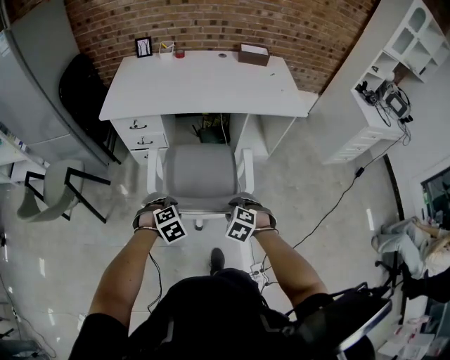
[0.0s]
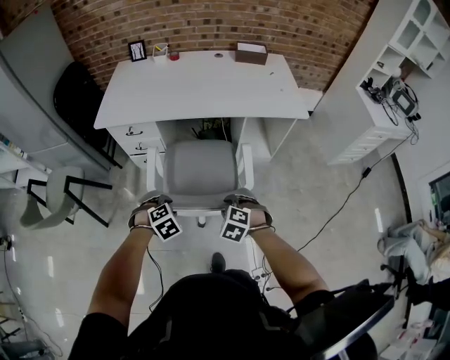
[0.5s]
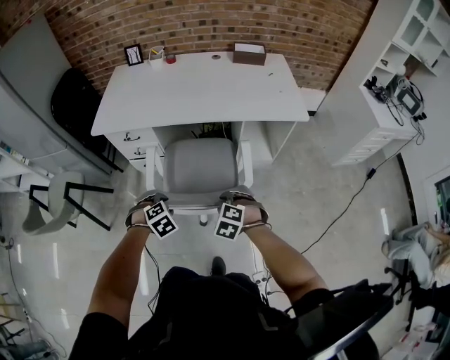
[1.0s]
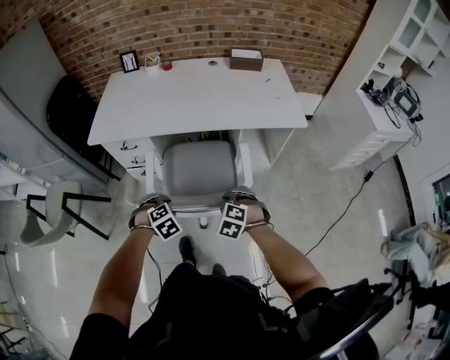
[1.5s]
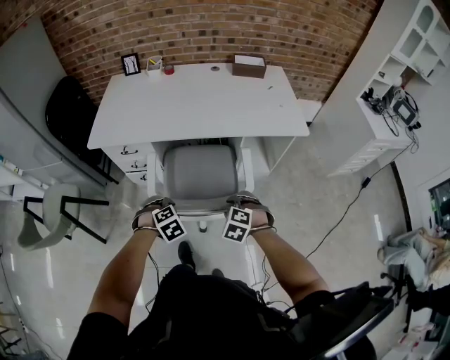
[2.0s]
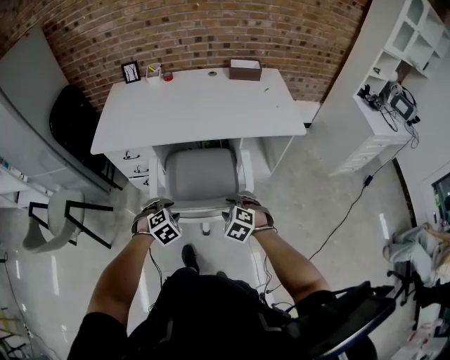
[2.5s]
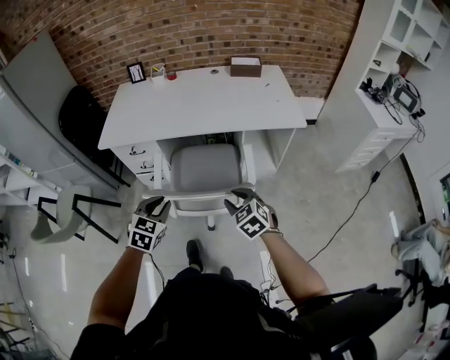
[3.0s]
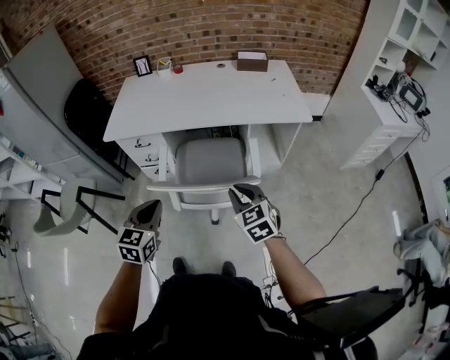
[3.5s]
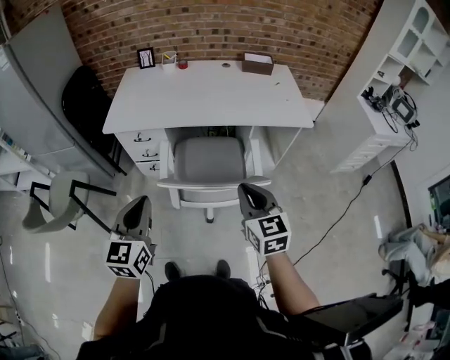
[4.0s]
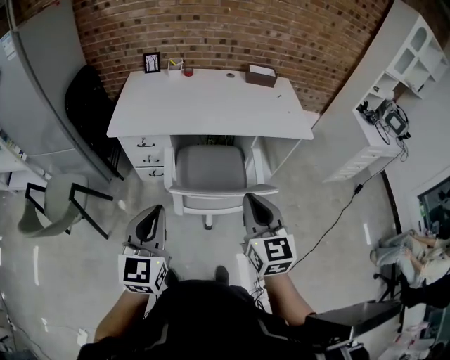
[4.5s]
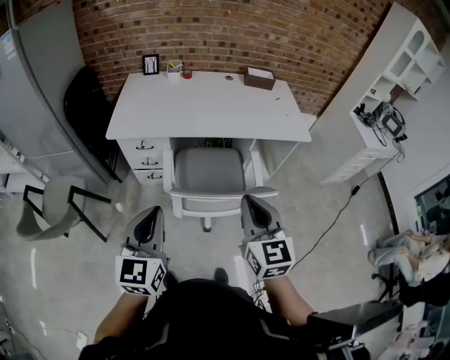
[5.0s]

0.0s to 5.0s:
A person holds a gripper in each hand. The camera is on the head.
0.0s to 2.5s: Both grippers move forward, about 15 cm.
2.5s to 5.0s: The right gripper is displaced upward by approximately 30 cm, angles its fingers upward, by roughly 50 degrees, and closes its fingers, while the left gripper heads upward and to the left, covering roughly 30 cm, tilts its fingers roughly 60 degrees upward, and closes its fingers.

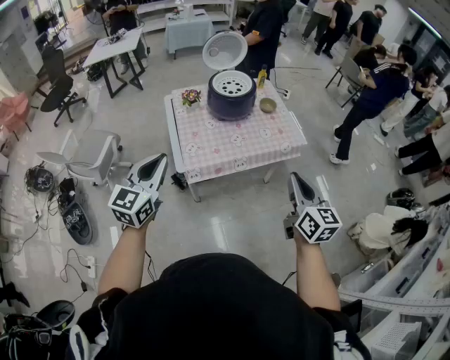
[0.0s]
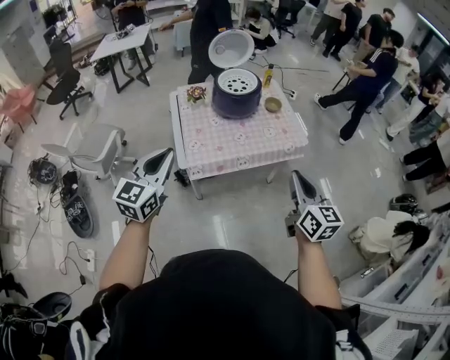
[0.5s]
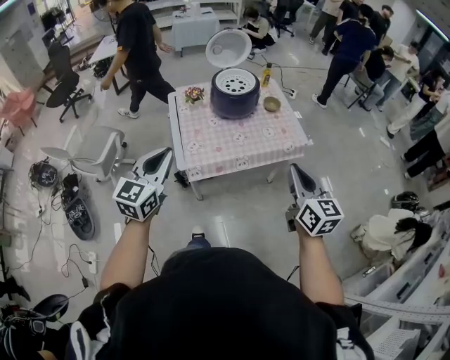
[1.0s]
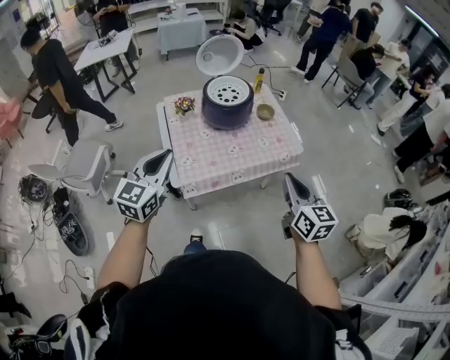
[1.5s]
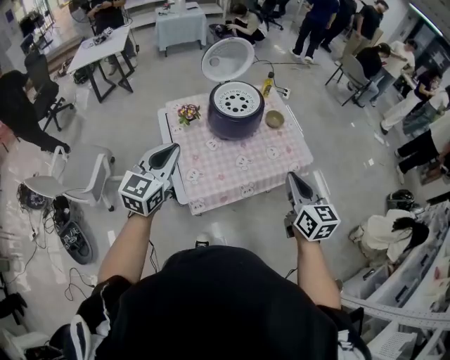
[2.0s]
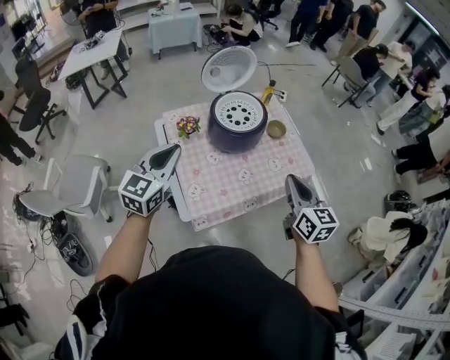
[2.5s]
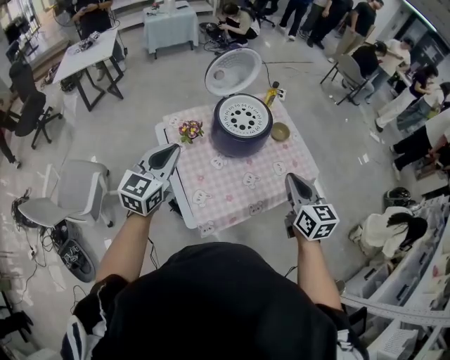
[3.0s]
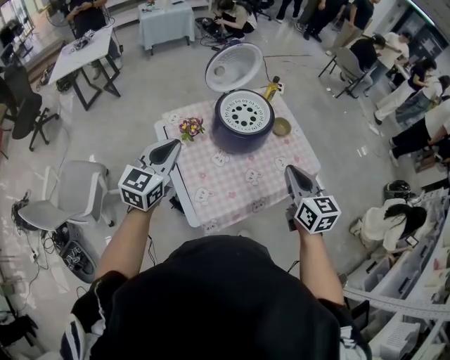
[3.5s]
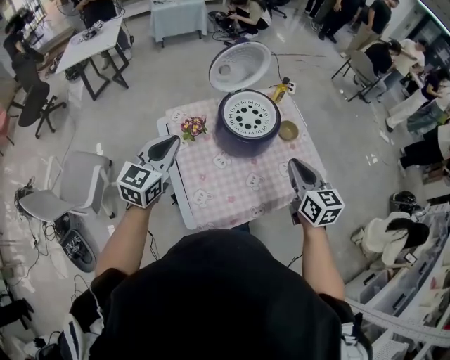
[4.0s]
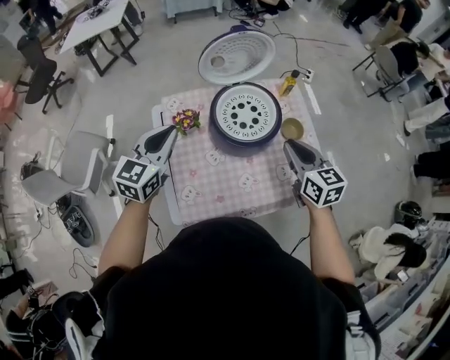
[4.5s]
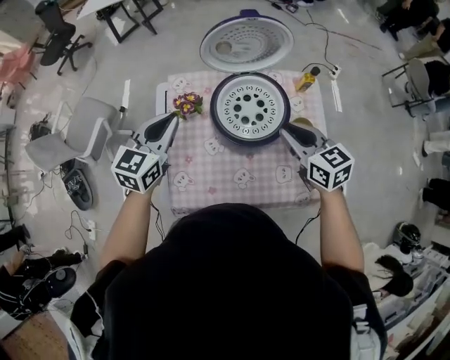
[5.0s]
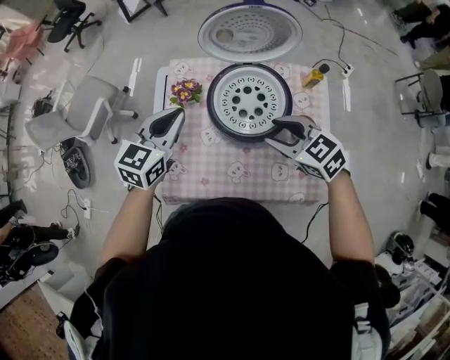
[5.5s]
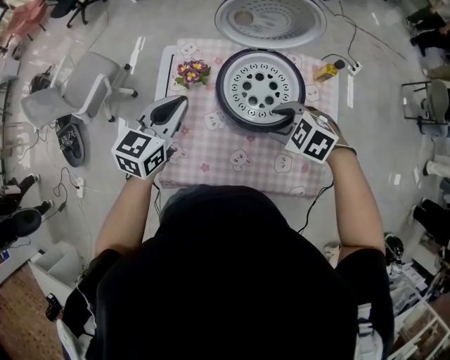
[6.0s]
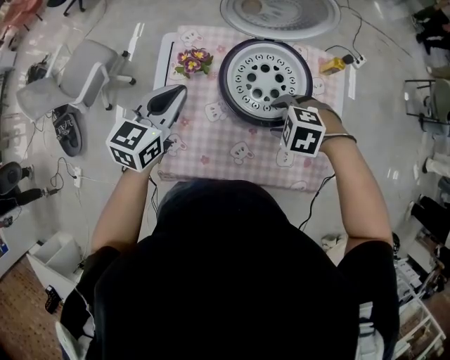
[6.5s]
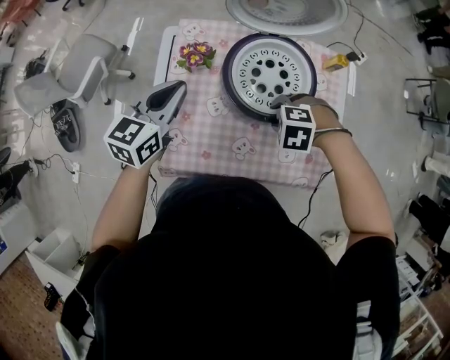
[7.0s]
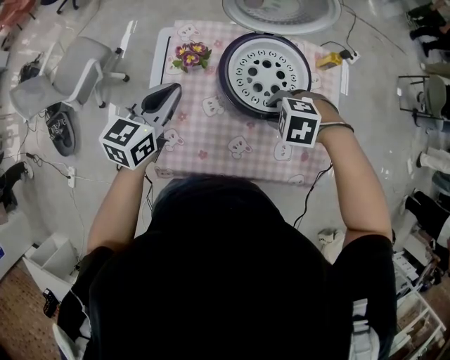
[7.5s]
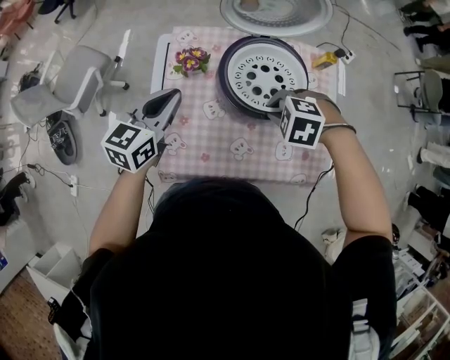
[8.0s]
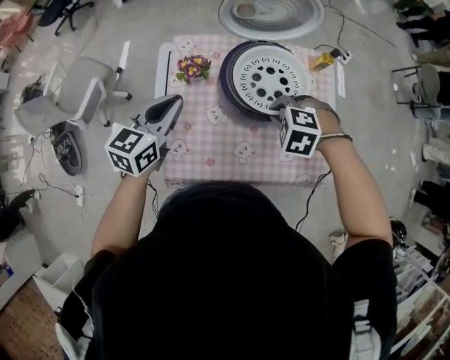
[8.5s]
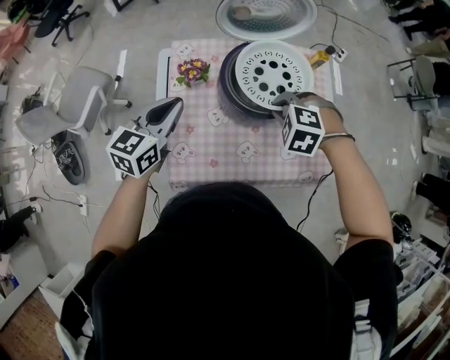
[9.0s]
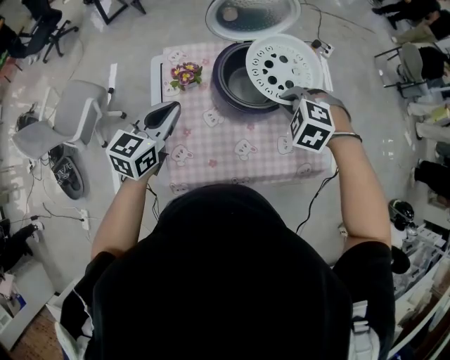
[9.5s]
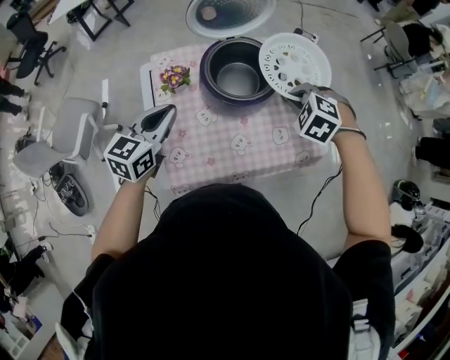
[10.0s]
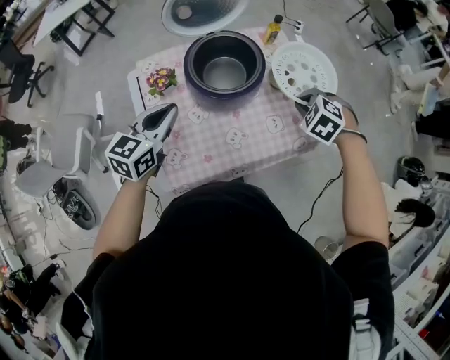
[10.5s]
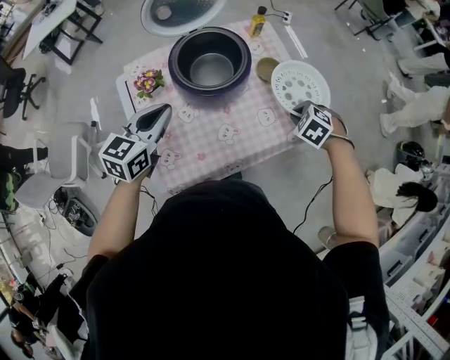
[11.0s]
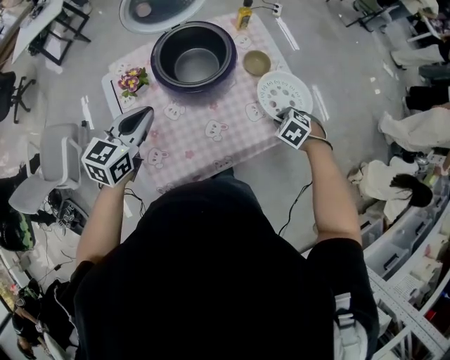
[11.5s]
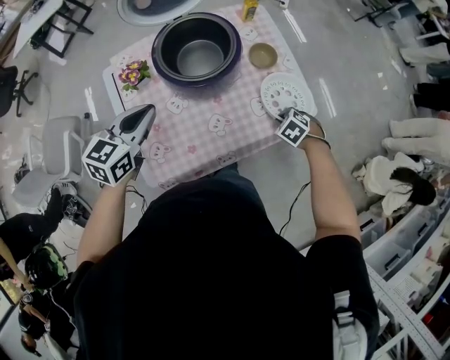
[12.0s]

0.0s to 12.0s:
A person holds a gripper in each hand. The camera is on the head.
0.0s to 2.0s: Both grippers move forward, approximately 20 cm.
2.0s to 4.0s: The left gripper goes about 20 cm forward and to the left; the right gripper moves forward, approximately 20 cm.
4.0s to 6.0s: The right gripper moves roughly 25 cm, tilts its fingers roughly 40 degrees downward, and opens. The left gripper changes place by roughly 15 cm, and swivels about 30 degrees.
6.0s to 8.0s: The right gripper closes up.
8.0s to 10.0s: The right gripper moves approximately 10 cm, and swivels about 30 degrees, while the left gripper changes place by approximately 5 cm.
10.0s to 12.0s: The right gripper goes about 25 cm downward, and swivels approximately 30 degrees, while the left gripper moves about 5 cm.

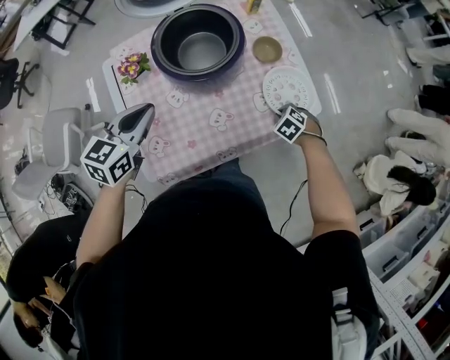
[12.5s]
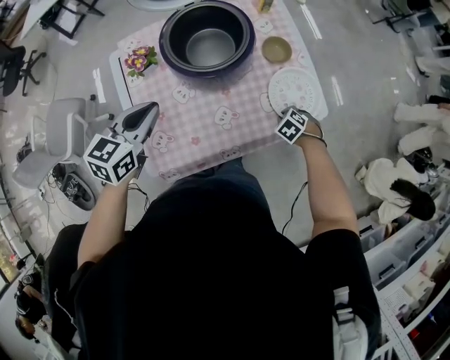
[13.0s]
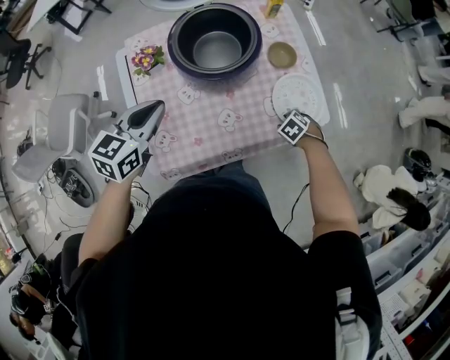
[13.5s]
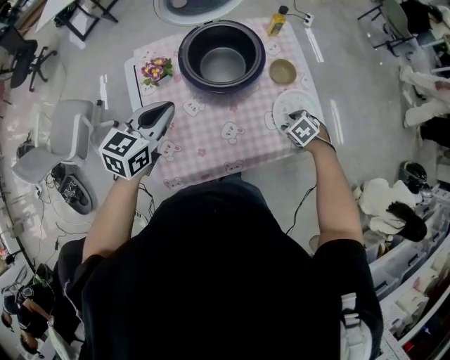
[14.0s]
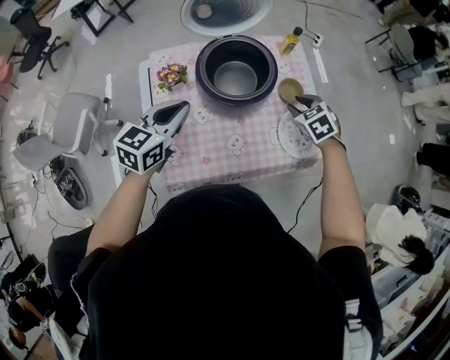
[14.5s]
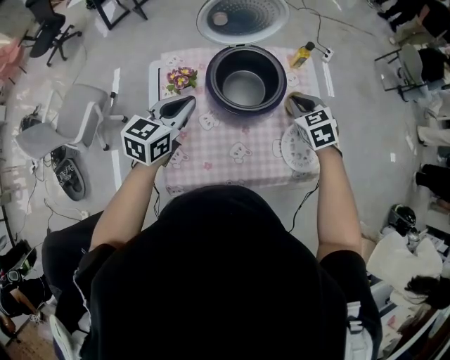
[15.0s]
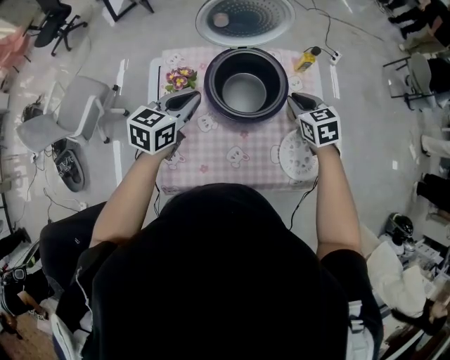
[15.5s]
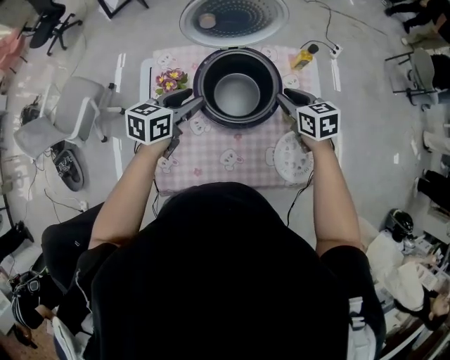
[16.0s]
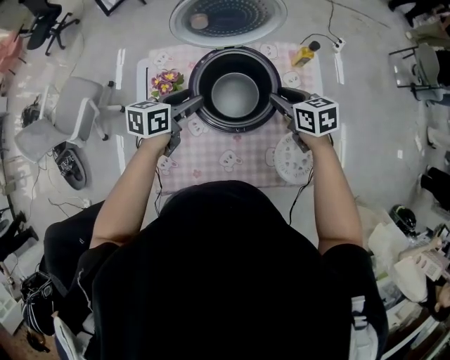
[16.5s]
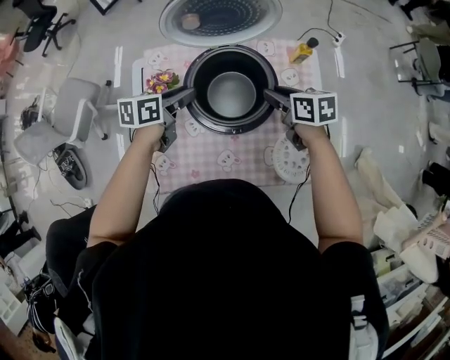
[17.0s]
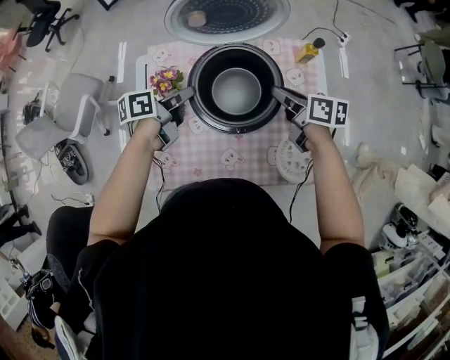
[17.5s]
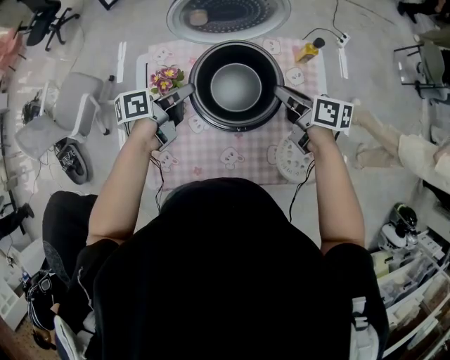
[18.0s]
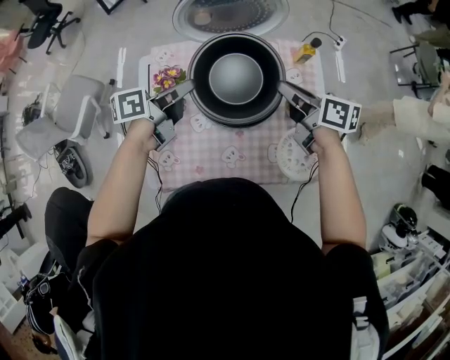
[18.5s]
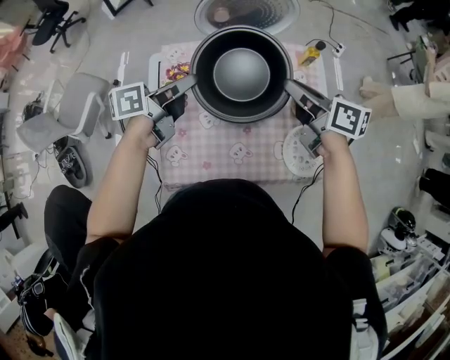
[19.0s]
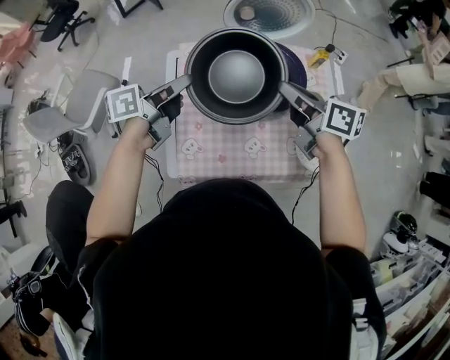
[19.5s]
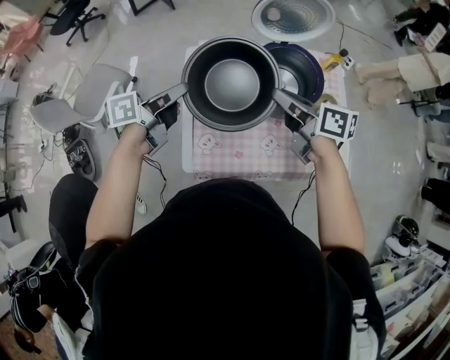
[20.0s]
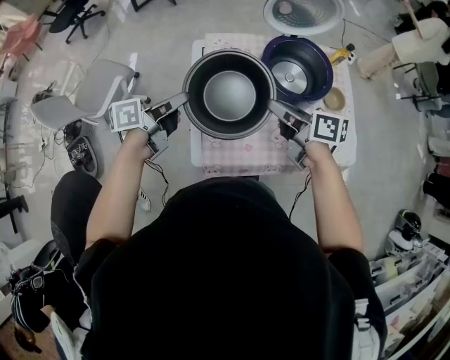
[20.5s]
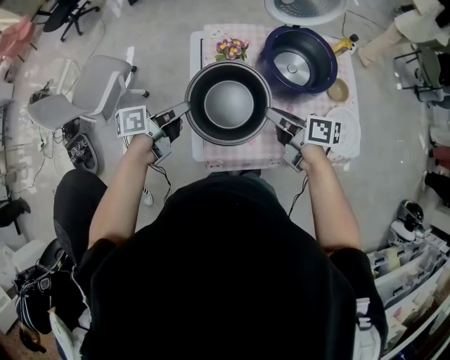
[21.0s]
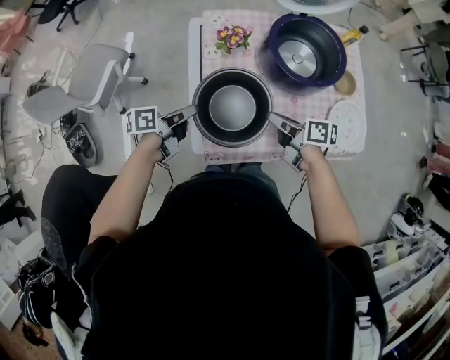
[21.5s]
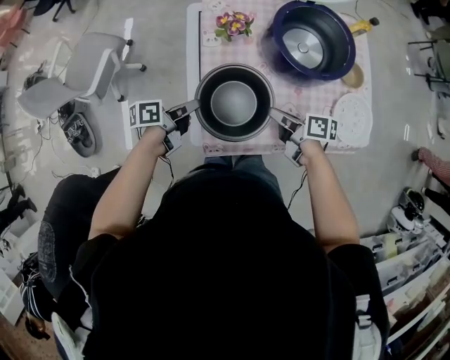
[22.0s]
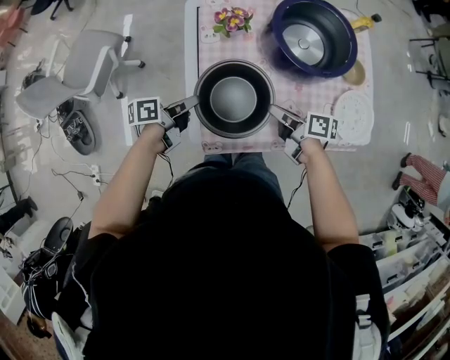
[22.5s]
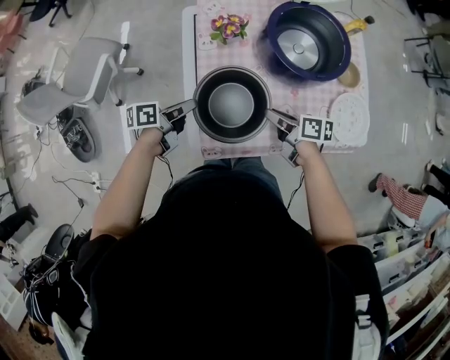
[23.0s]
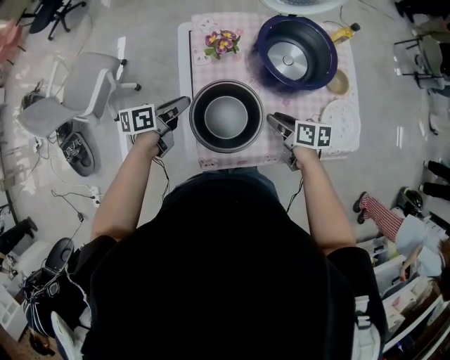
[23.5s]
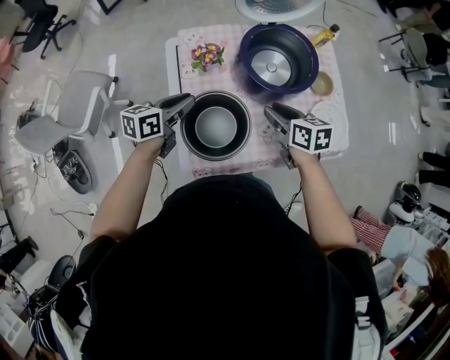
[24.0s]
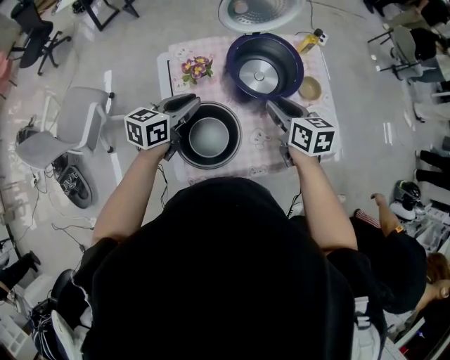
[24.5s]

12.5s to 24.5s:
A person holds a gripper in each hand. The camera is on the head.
12.5s to 14.5s: The left gripper moves about 5 cm, while the right gripper heads upward, covering approximately 20 cm, turns by roughly 20 degrees, and opens its fingers.
14.5s to 16.5s: The left gripper travels forward and downward by some 15 cm, rotates about 30 degrees, and opens its fingers. The right gripper travels forward and to the left by approximately 15 cm, turns by about 40 degrees, and closes, then reopens.
16.5s to 18.5s: The left gripper goes some 5 cm upward, changes its angle by approximately 40 degrees, and closes its fingers. Meanwhile the right gripper moves upward, roughly 10 cm, turns by some 30 degrees, and closes up.
18.5s to 20.5s: The two grippers go about 30 cm to the left and backward.
20.5s to 22.5s: Both grippers travel together downward, some 20 cm. The right gripper changes its angle by approximately 30 degrees.
22.5s to 24.5s: Both grippers travel together upward, forward and to the right, some 20 cm. The right gripper changes its angle by approximately 50 degrees, and opens its fingers, while the left gripper rolls clockwise, seen from behind, by roughly 50 degrees.
